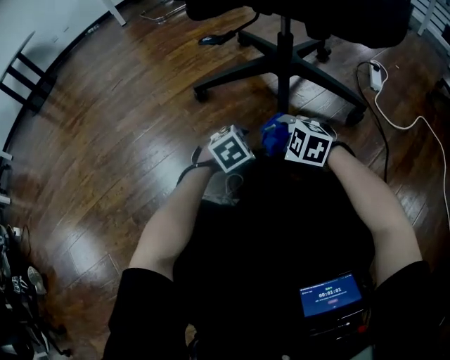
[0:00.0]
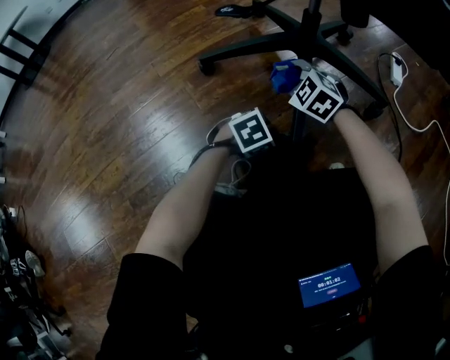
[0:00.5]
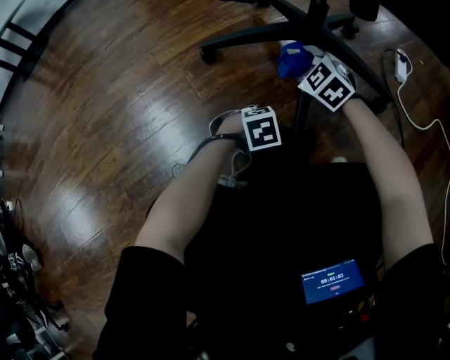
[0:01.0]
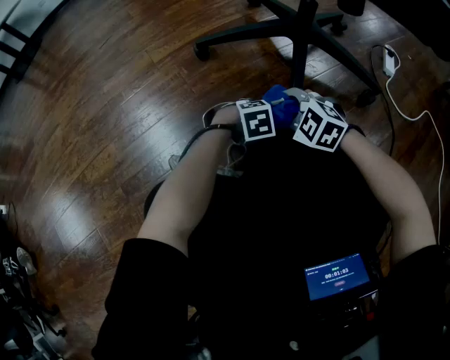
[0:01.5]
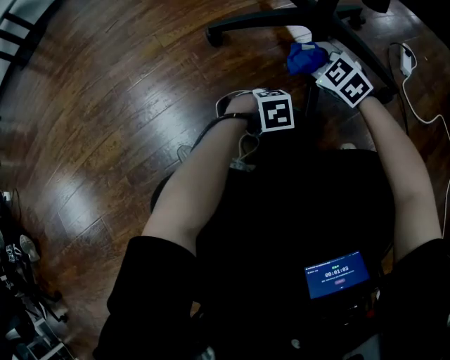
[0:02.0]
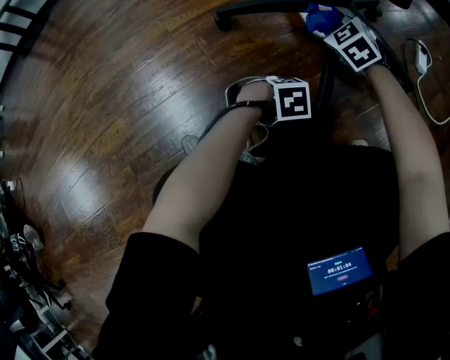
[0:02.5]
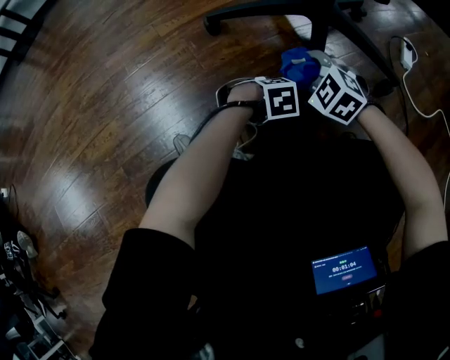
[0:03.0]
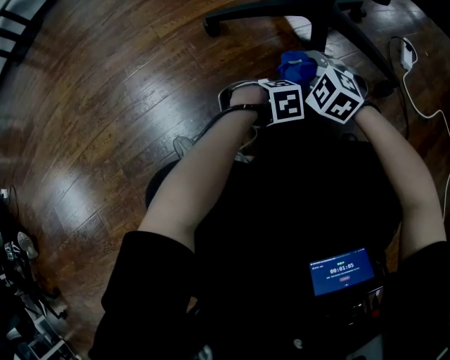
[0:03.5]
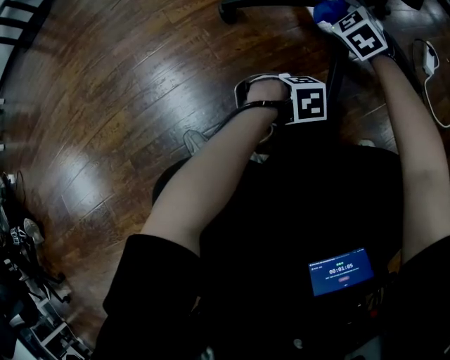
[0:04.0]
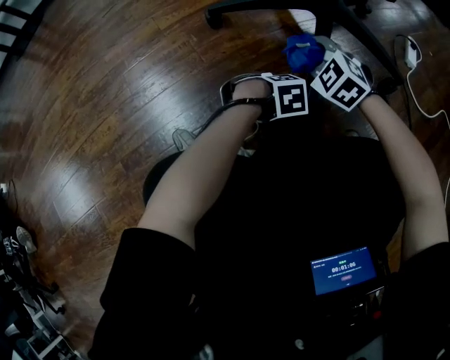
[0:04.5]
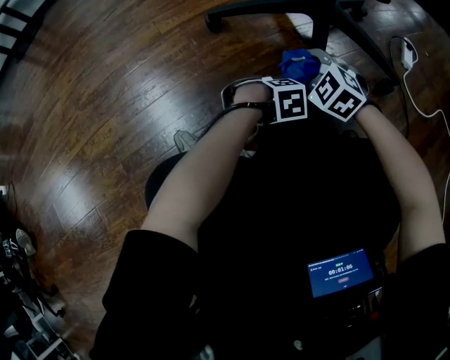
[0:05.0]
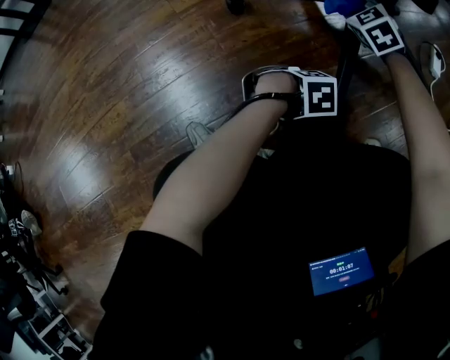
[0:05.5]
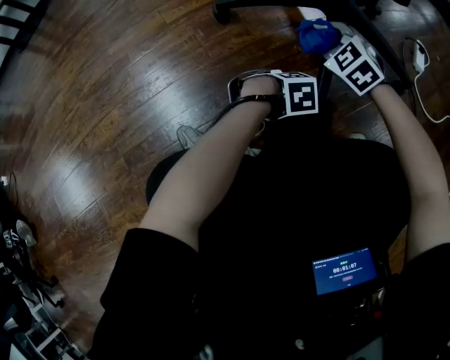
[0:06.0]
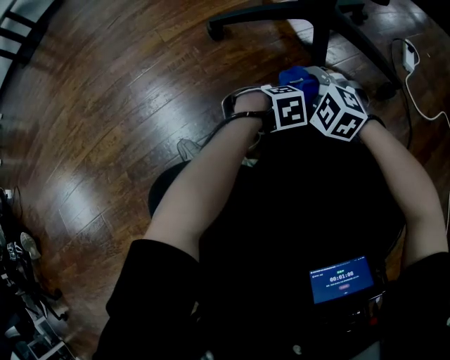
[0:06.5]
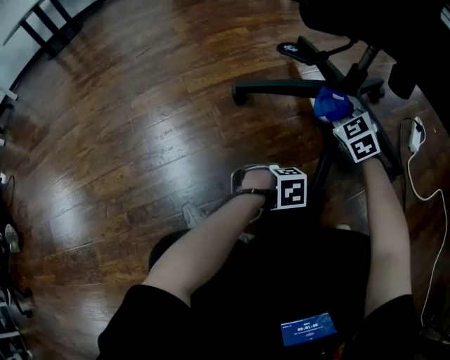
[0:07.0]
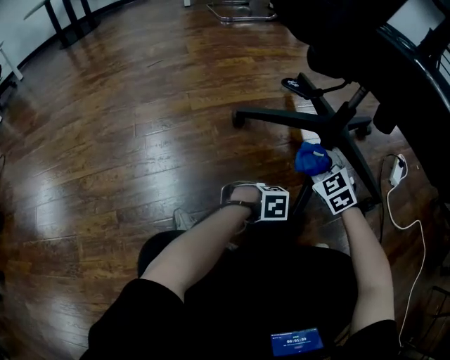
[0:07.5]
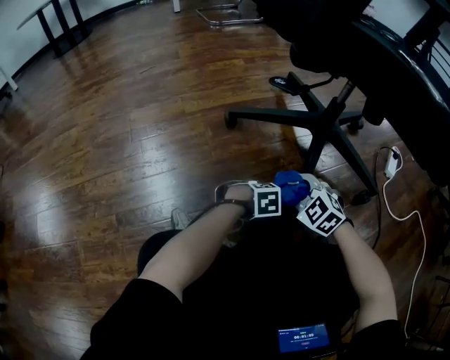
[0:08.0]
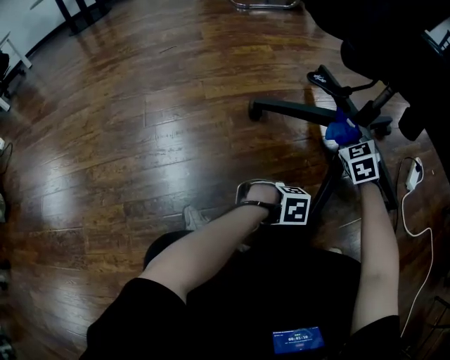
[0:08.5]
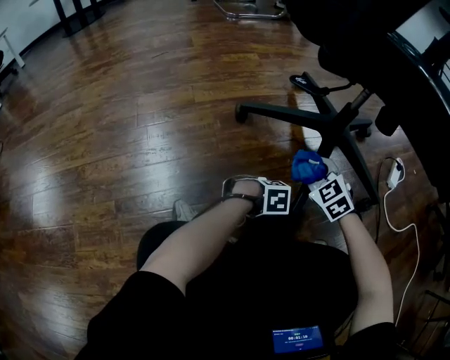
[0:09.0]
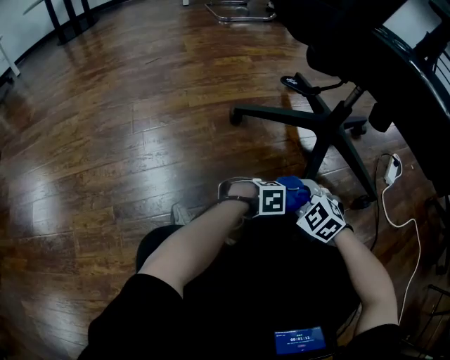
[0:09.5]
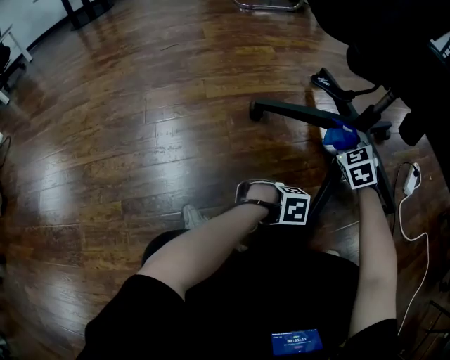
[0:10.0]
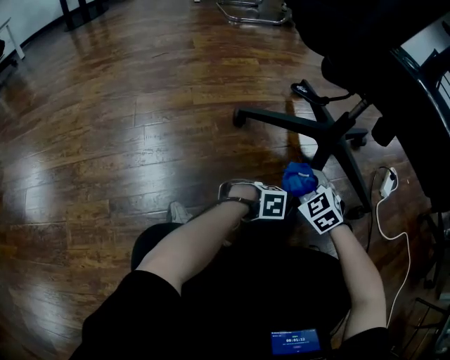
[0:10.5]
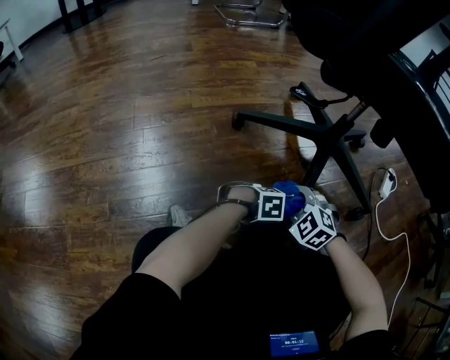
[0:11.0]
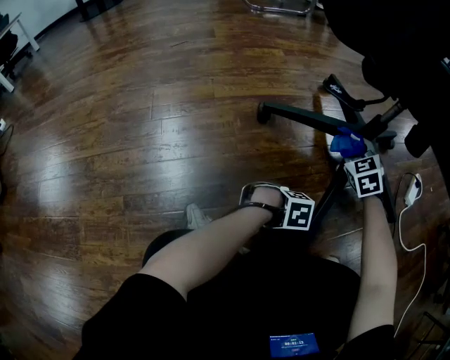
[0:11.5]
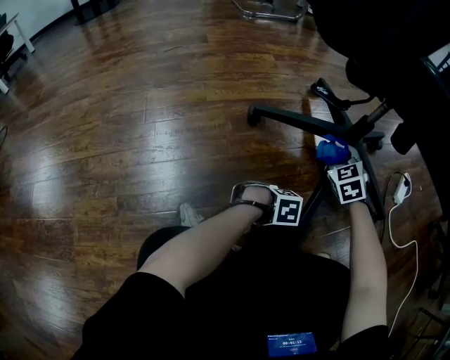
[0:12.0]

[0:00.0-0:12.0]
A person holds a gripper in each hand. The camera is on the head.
0:00.0 to 0:02.0: The right gripper moves some 10 cm.
0:02.0 to 0:04.0: The right gripper moves some 10 cm.
0:06.0 to 0:08.0: The right gripper ends up approximately 10 cm from where it was.
0:08.0 to 0:10.0: The right gripper goes up and down, roughly 5 cm each way, reversing 2 times, and swivels some 30 degrees.

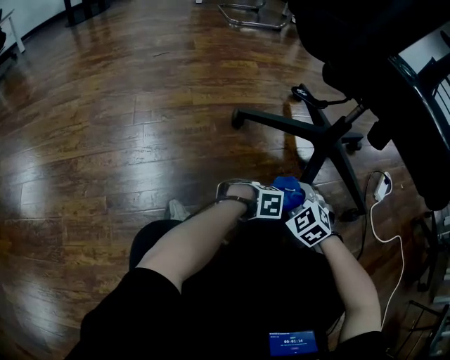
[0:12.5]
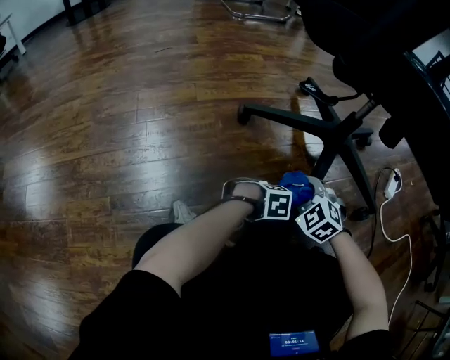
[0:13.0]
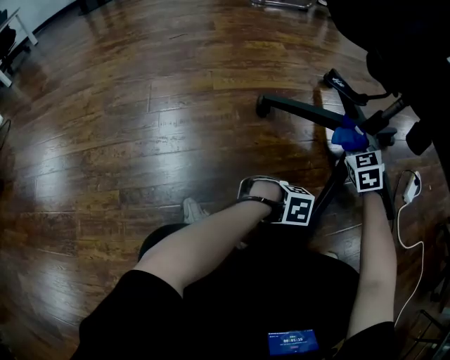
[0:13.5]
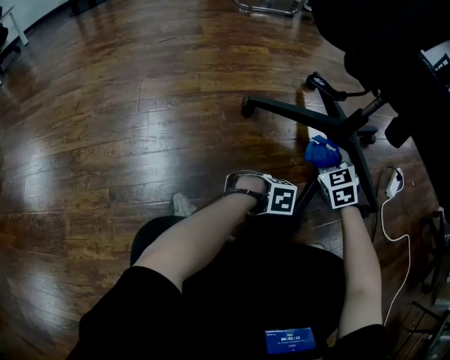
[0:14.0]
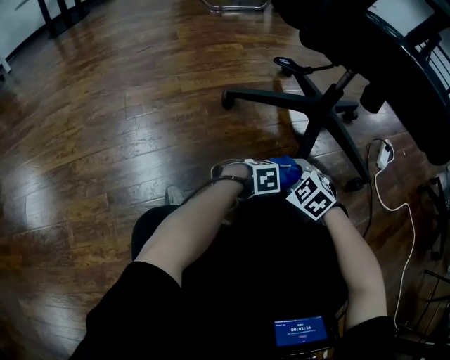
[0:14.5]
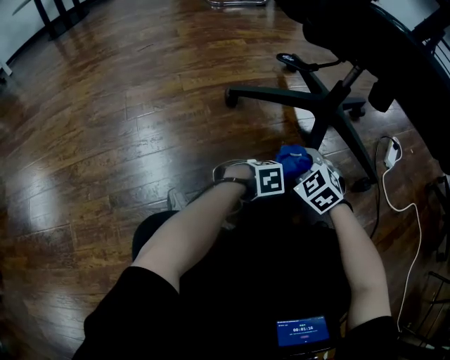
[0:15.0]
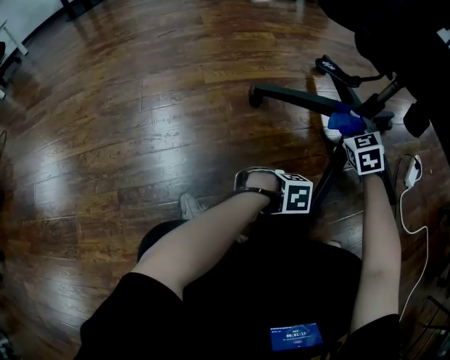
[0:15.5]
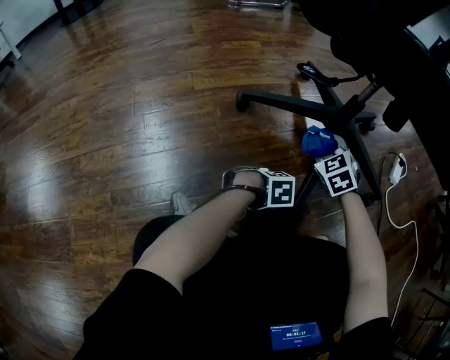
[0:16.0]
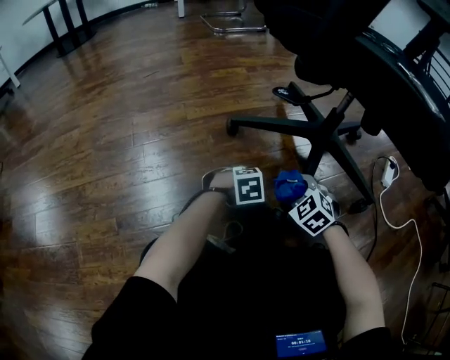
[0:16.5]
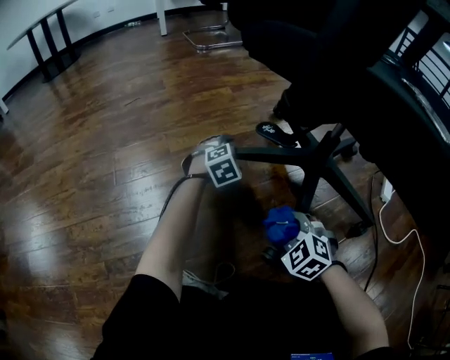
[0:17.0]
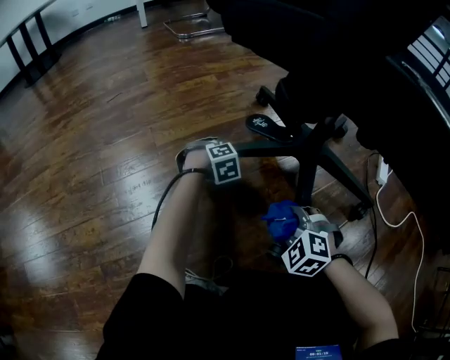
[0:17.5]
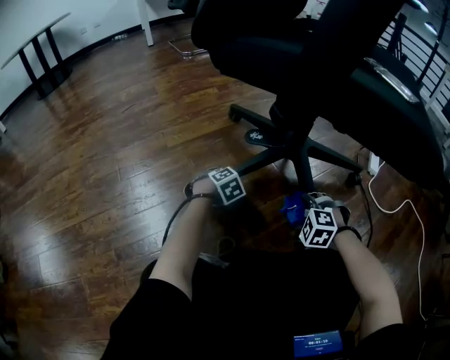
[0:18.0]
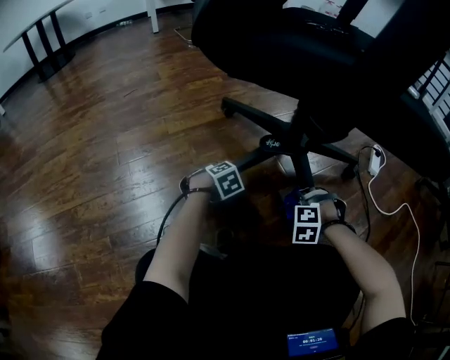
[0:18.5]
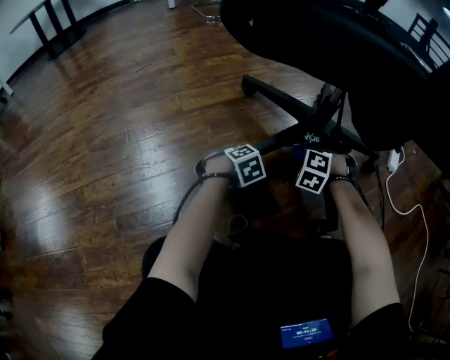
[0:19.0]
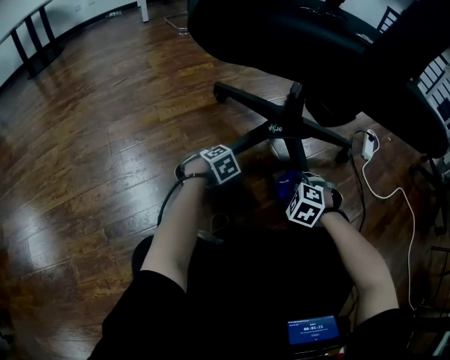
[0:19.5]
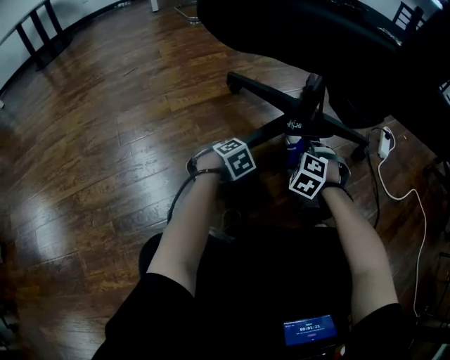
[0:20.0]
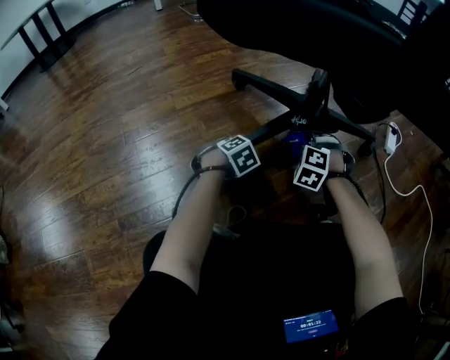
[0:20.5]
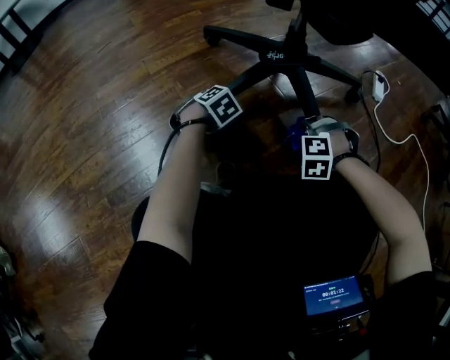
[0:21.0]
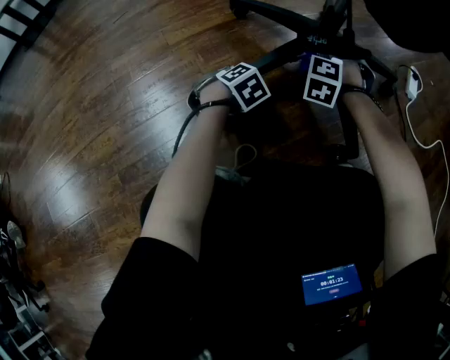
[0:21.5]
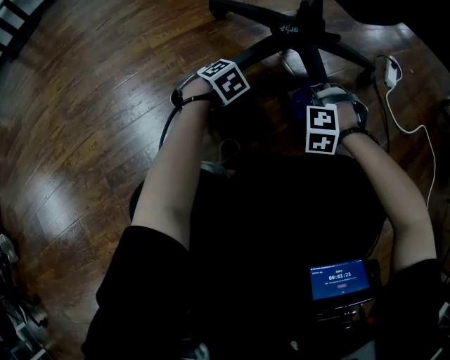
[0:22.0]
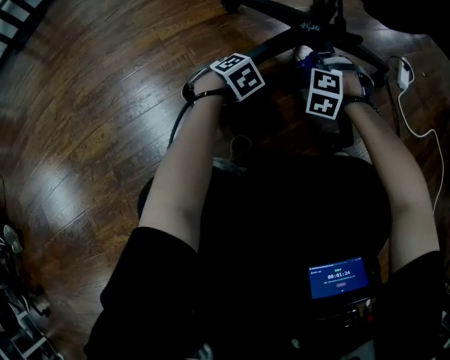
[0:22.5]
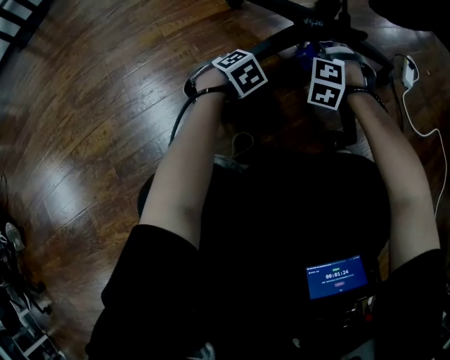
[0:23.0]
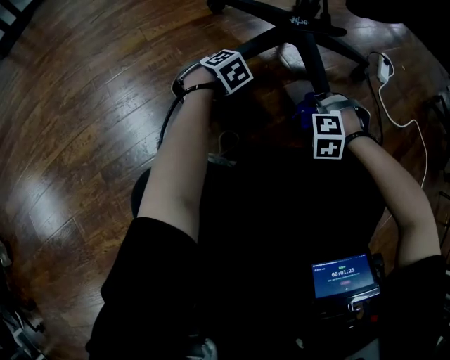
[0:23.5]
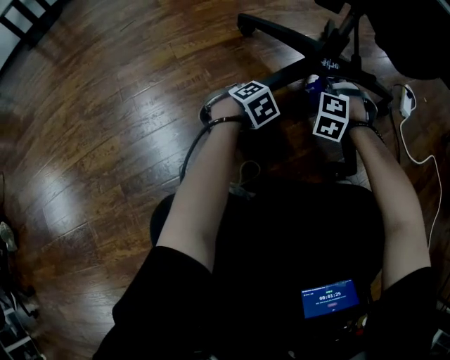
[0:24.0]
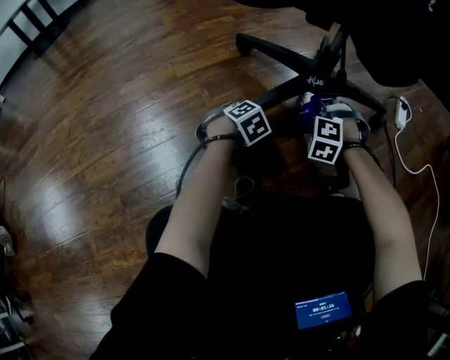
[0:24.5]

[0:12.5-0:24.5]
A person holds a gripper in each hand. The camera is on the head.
0:16.5 to 0:18.5: The right gripper ends up some 10 cm from where it was, and changes its angle by roughly 40 degrees.
0:18.5 to 0:20.5: The right gripper changes place by some 15 cm, and rotates some 20 degrees.
0:20.5 to 0:22.5: The right gripper goes up and down, about 5 cm each way, reversing 2 times.

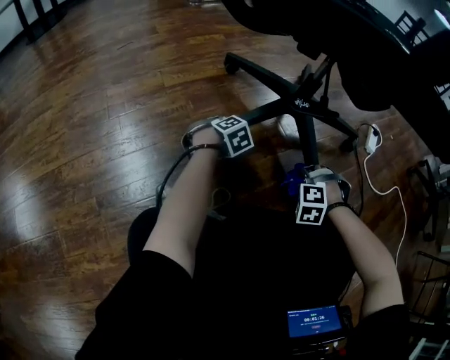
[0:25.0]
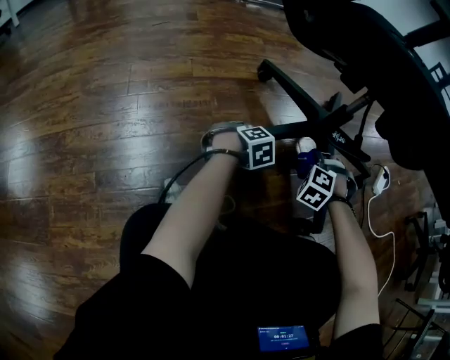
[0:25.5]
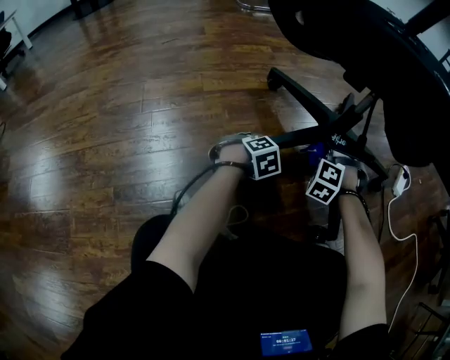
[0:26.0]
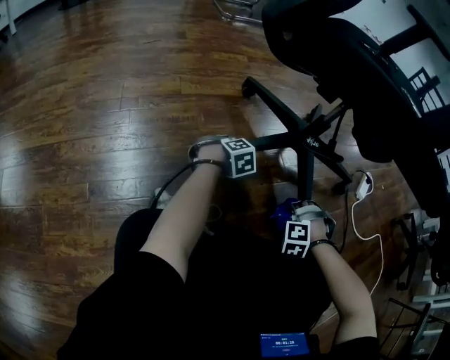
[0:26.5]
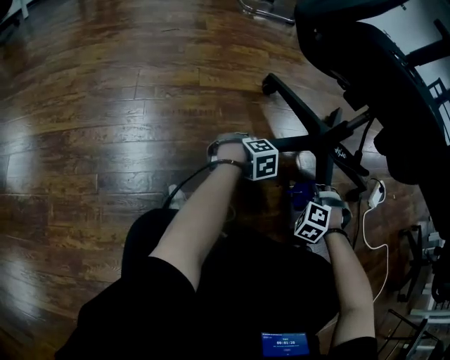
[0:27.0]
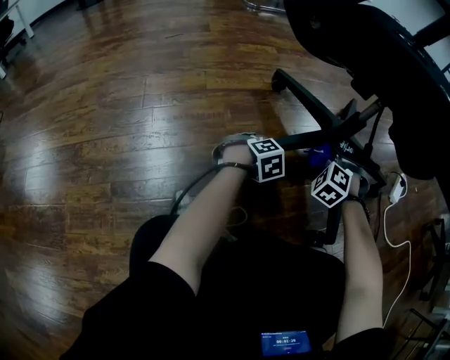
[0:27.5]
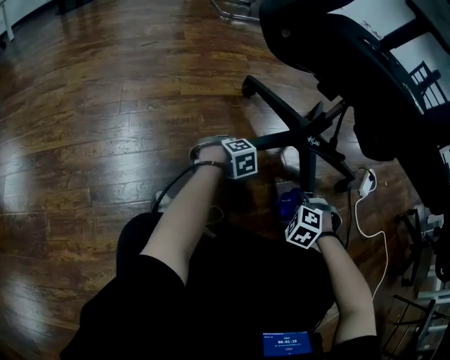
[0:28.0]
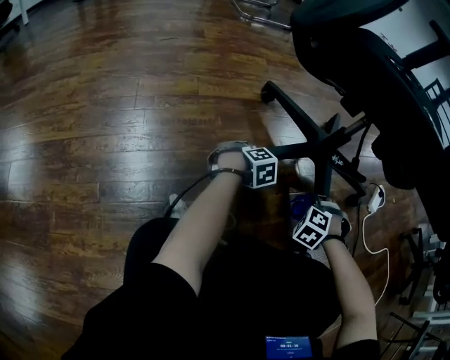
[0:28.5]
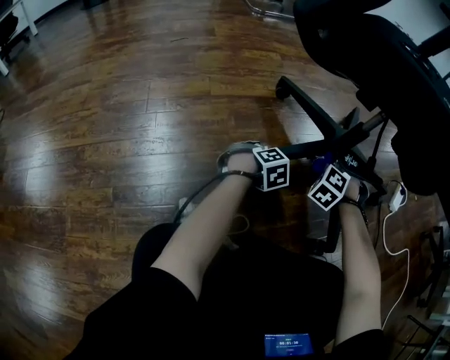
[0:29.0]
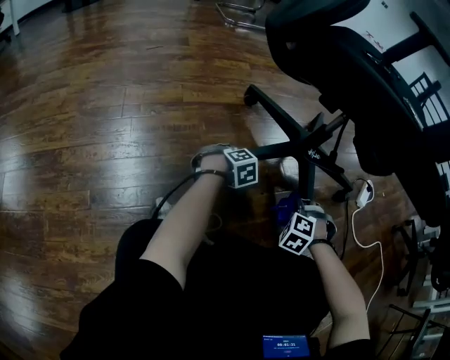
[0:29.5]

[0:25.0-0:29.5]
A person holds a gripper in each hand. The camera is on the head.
0:27.0 to 0:29.5: The right gripper goes up and down, approximately 5 cm each way, reversing 3 times.
